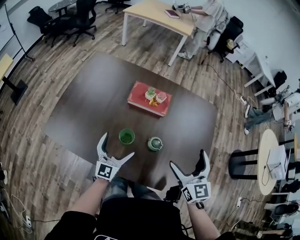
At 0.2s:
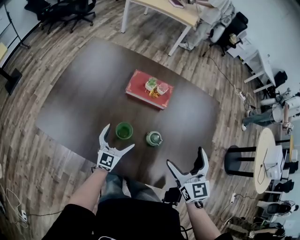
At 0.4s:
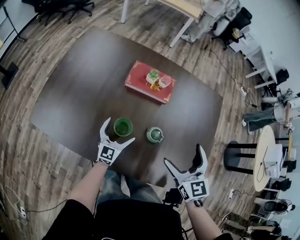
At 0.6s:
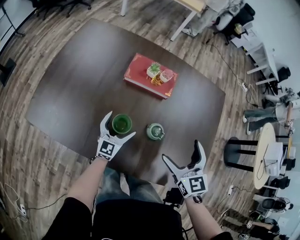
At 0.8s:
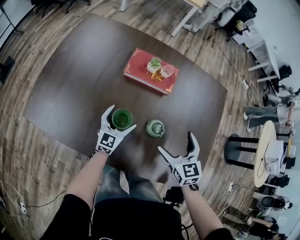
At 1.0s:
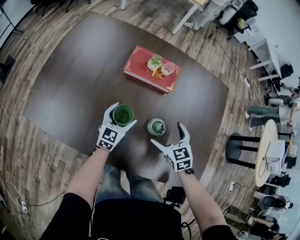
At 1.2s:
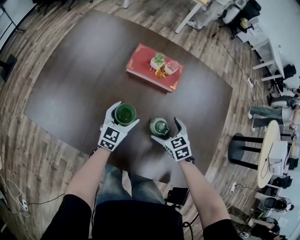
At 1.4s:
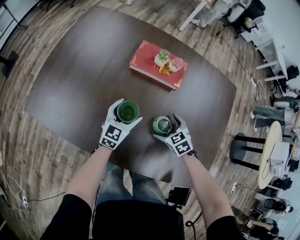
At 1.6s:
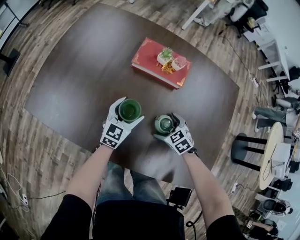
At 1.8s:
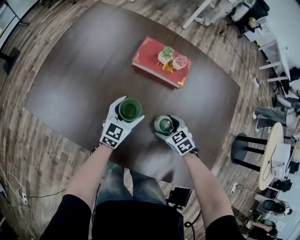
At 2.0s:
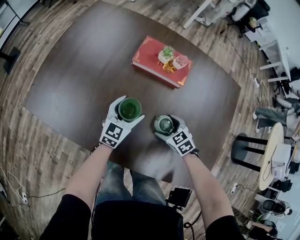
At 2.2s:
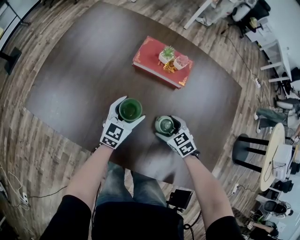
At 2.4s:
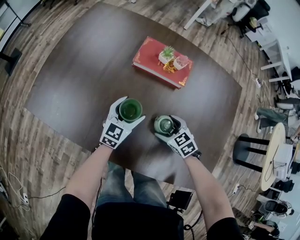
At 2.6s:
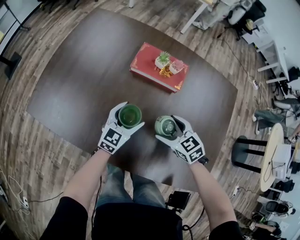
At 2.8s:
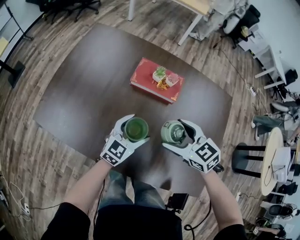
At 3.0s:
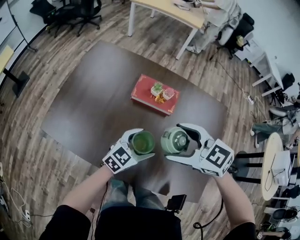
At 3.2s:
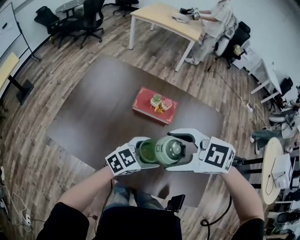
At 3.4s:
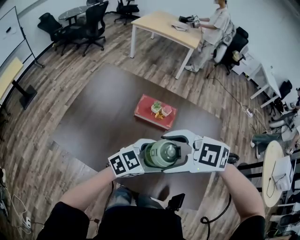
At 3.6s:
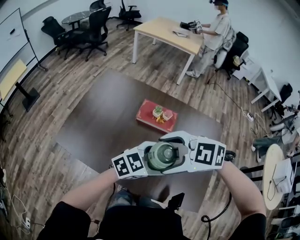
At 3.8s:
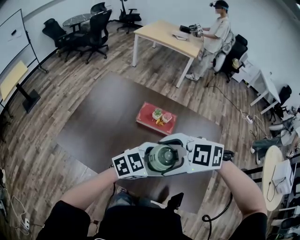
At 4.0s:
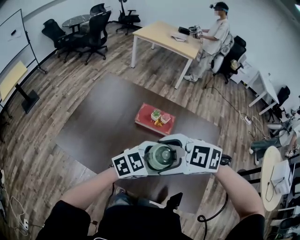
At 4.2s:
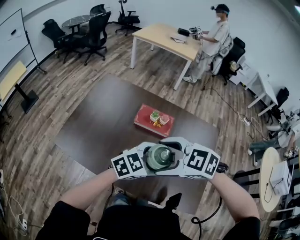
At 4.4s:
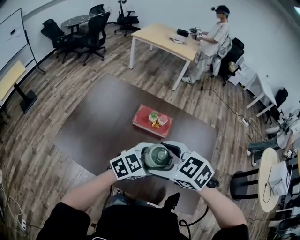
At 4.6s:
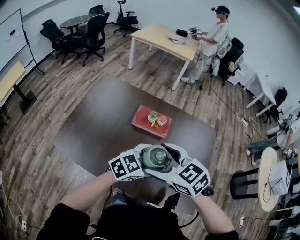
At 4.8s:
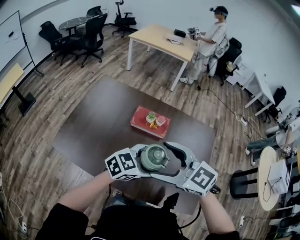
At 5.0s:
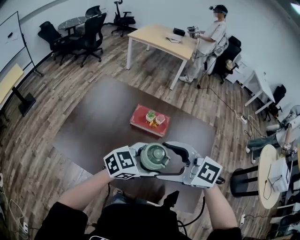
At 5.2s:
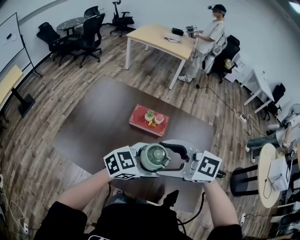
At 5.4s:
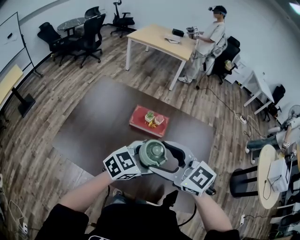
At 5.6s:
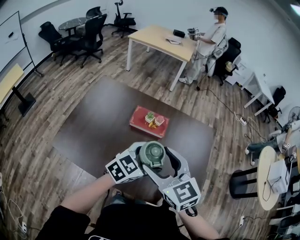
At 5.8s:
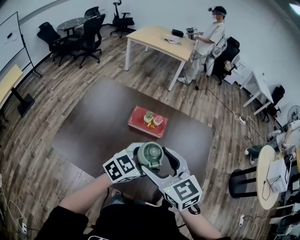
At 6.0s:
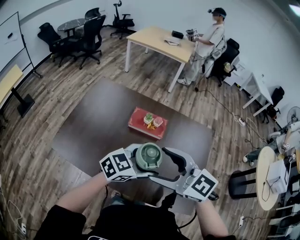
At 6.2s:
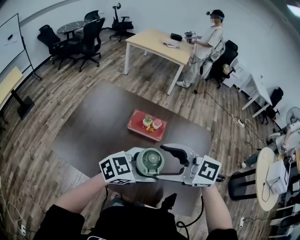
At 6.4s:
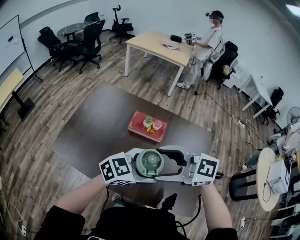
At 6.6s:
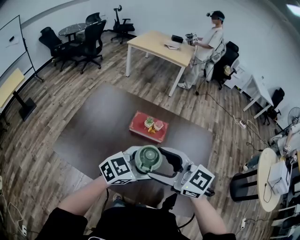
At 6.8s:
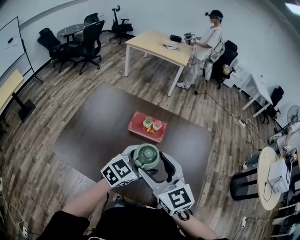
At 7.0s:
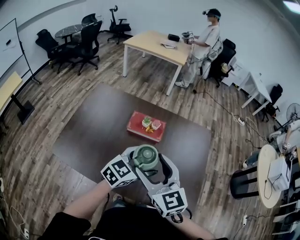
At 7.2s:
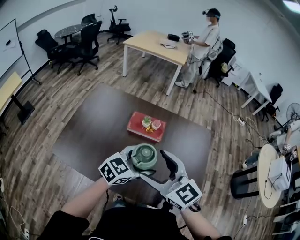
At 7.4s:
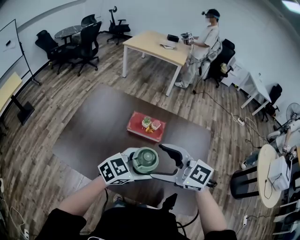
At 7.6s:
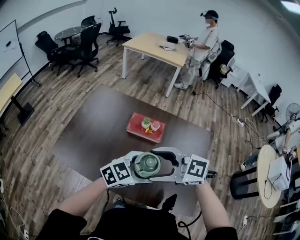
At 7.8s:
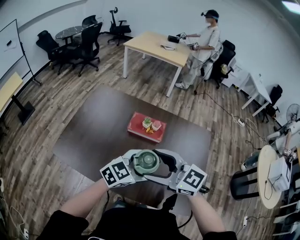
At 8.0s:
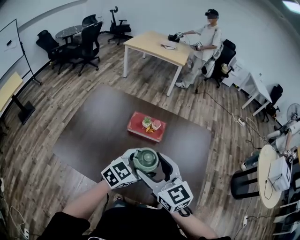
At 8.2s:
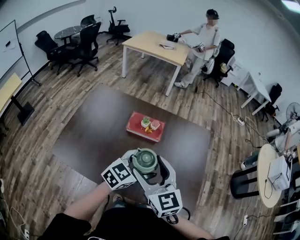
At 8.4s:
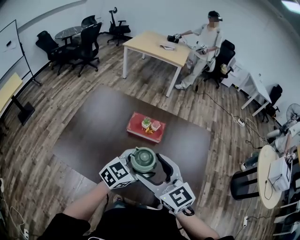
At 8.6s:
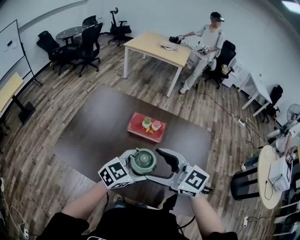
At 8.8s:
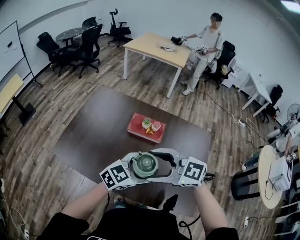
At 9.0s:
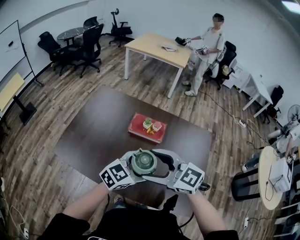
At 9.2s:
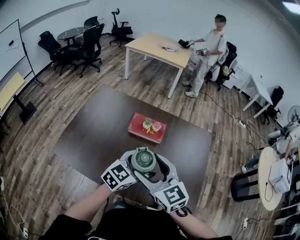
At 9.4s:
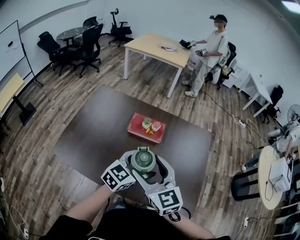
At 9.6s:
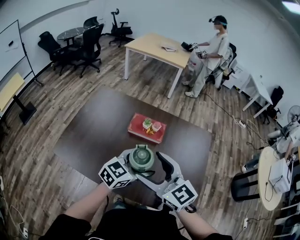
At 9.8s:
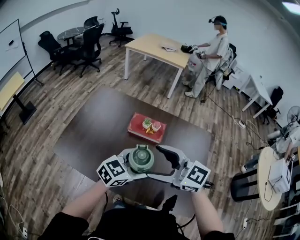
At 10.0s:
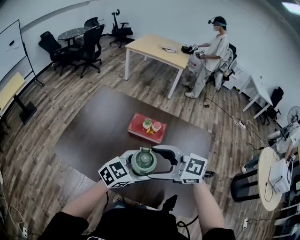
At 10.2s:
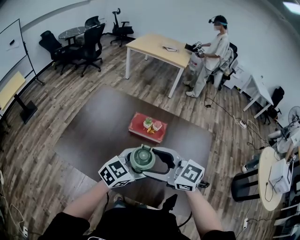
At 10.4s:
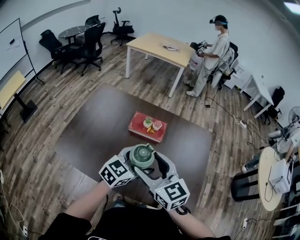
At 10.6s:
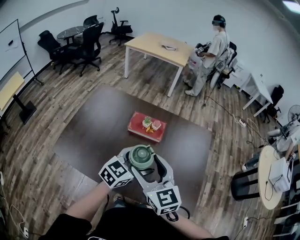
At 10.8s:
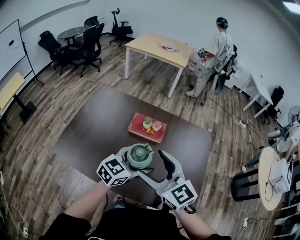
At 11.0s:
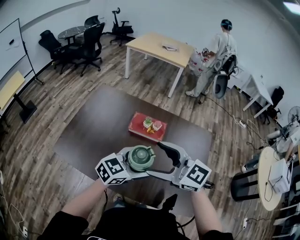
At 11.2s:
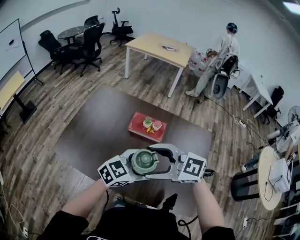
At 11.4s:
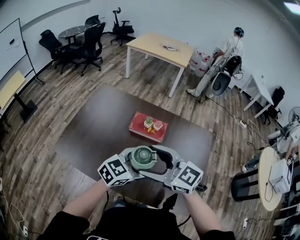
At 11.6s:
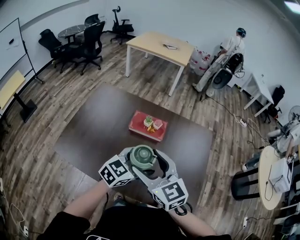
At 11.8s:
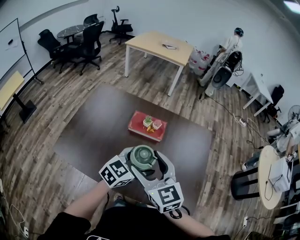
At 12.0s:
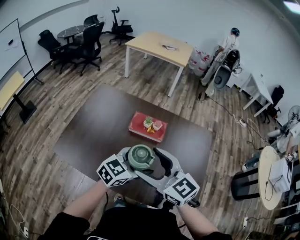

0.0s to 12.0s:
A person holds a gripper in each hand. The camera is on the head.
0.0s to 1.6s: The right gripper goes roughly 35 cm downward, and tips its fingers downward by roughly 50 degrees. The left gripper moves downward and forward, some 20 cm.
1.6s to 3.0s: The left gripper is displaced upward and backward by roughly 15 cm, and changes its angle by about 20 degrees; the right gripper heads upward, covering about 35 cm, and swivels roughly 30 degrees.
3.0s to 4.4s: The right gripper goes about 10 cm upward; the left gripper shifts about 15 cm upward.
4.4s to 6.0s: The right gripper moves upward, some 5 cm, and changes its angle by roughly 30 degrees.
6.0s to 7.6s: The right gripper turns by roughly 20 degrees.
9.0s to 10.4s: The right gripper rotates some 30 degrees.

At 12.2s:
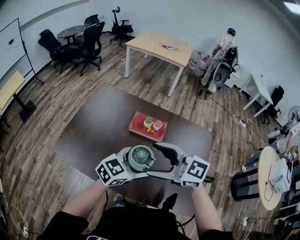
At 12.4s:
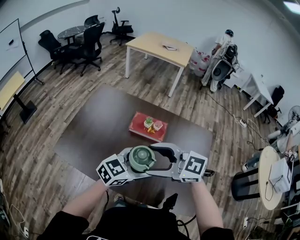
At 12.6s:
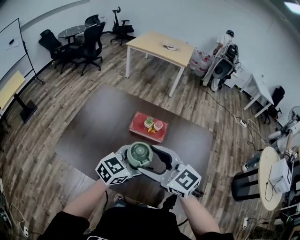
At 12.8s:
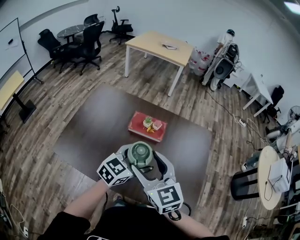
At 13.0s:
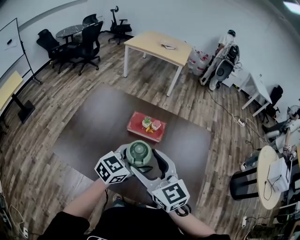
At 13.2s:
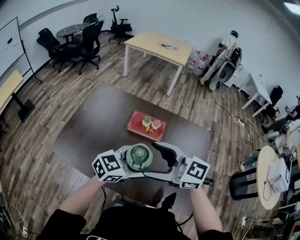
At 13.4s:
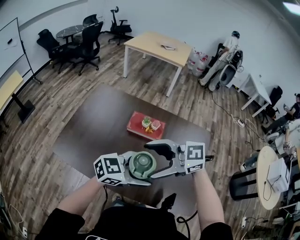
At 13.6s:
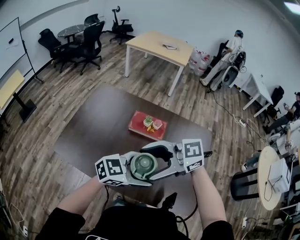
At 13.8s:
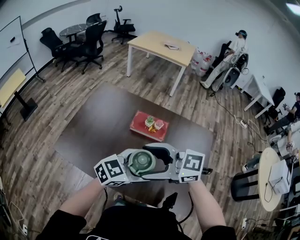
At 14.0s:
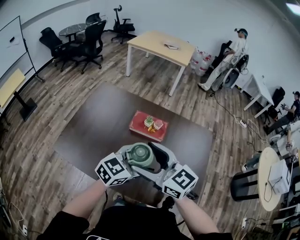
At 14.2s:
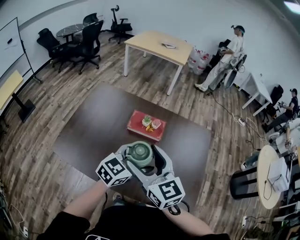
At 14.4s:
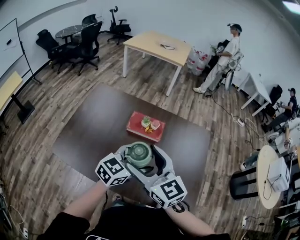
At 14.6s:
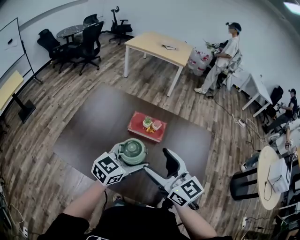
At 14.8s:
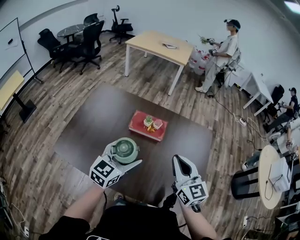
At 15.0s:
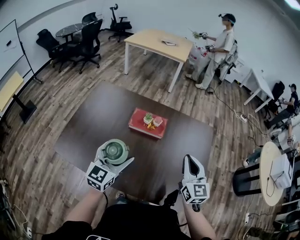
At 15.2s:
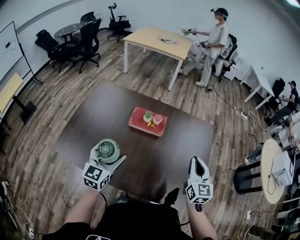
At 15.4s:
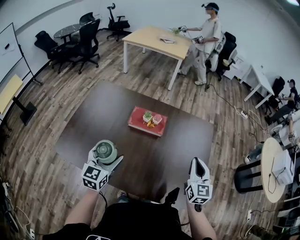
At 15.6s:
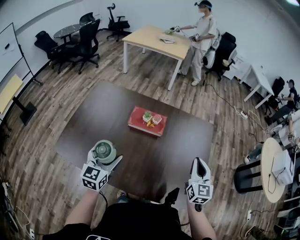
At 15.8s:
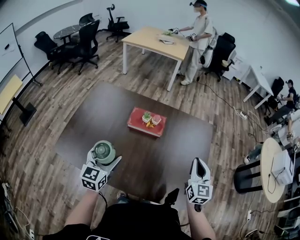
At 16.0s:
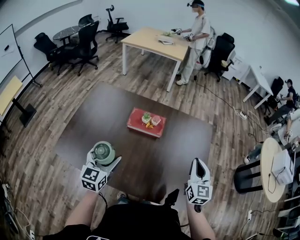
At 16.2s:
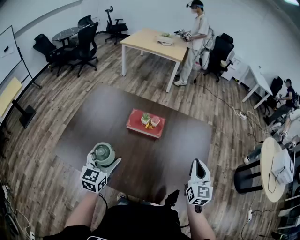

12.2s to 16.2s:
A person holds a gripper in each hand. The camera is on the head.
12.2s to 13.6s: The right gripper turns by some 30 degrees.
13.6s to 14.8s: The right gripper moves roughly 15 cm, rotates about 80 degrees, and closes its fingers. The left gripper changes place by approximately 10 cm, and rotates some 40 degrees.
14.8s to 16.2s: The left gripper heads to the left, covering about 10 cm. The right gripper heads to the right and downward, covering some 15 cm, and changes its angle by roughly 30 degrees.

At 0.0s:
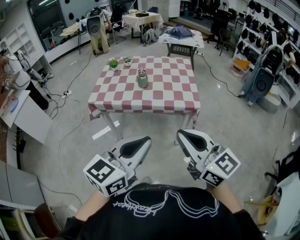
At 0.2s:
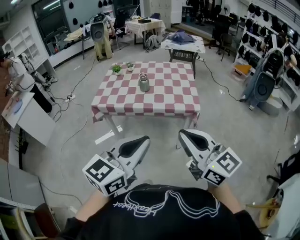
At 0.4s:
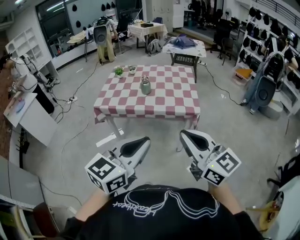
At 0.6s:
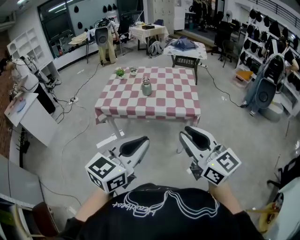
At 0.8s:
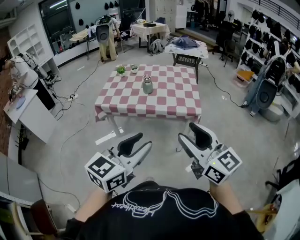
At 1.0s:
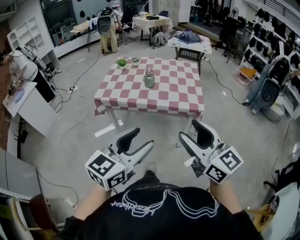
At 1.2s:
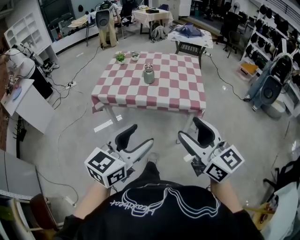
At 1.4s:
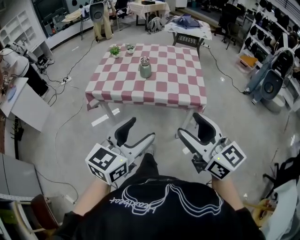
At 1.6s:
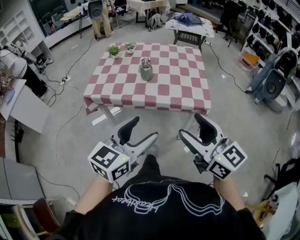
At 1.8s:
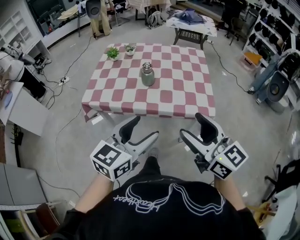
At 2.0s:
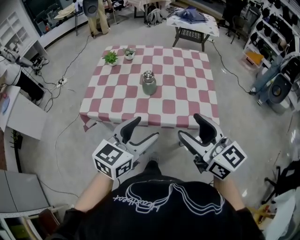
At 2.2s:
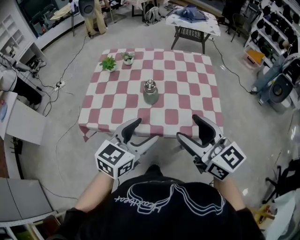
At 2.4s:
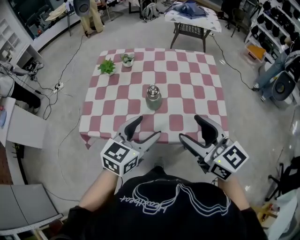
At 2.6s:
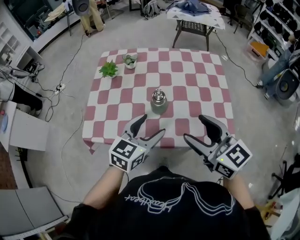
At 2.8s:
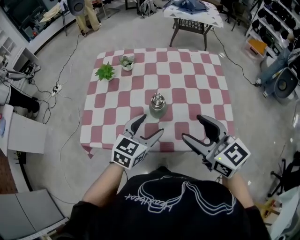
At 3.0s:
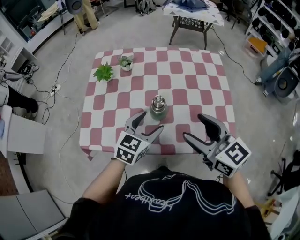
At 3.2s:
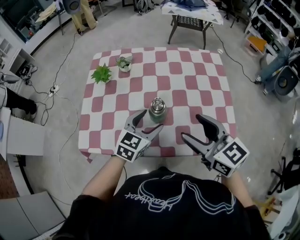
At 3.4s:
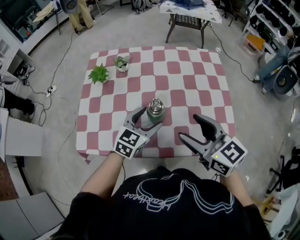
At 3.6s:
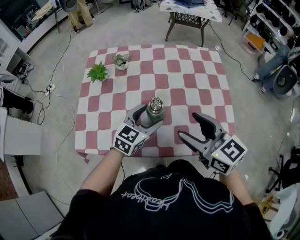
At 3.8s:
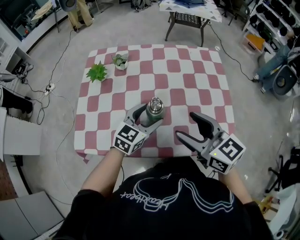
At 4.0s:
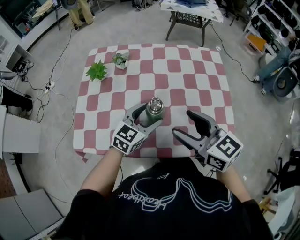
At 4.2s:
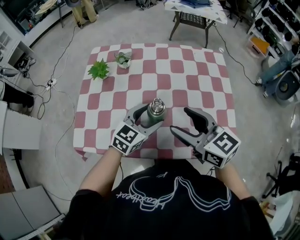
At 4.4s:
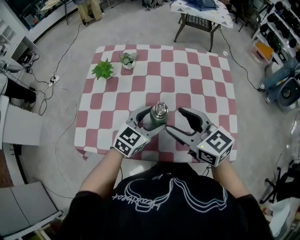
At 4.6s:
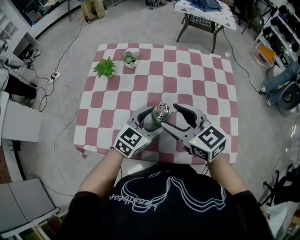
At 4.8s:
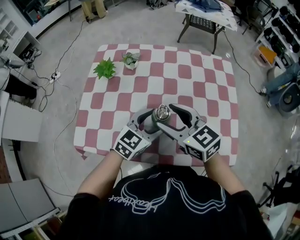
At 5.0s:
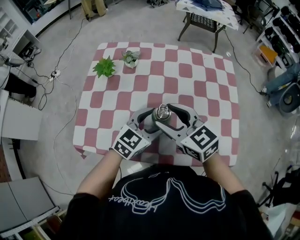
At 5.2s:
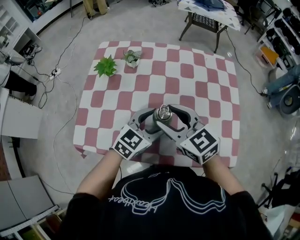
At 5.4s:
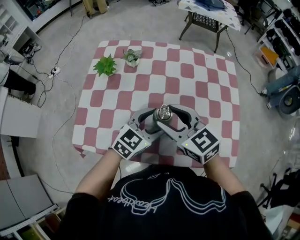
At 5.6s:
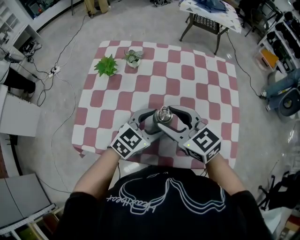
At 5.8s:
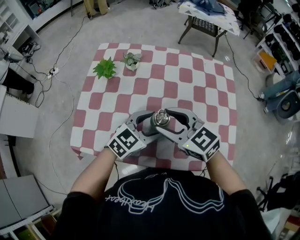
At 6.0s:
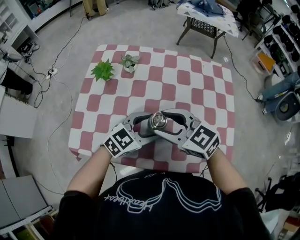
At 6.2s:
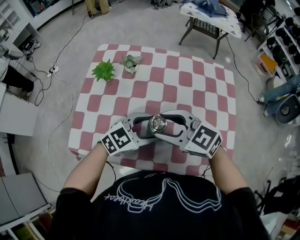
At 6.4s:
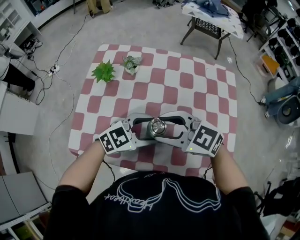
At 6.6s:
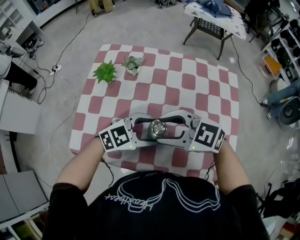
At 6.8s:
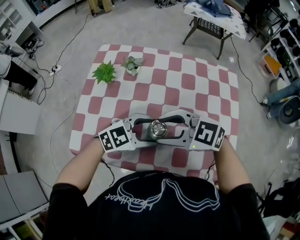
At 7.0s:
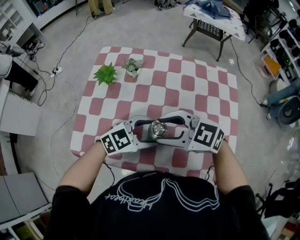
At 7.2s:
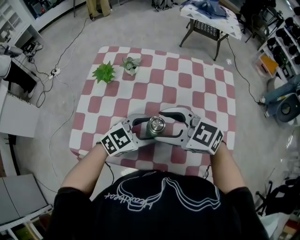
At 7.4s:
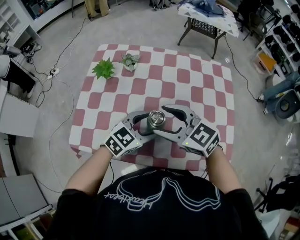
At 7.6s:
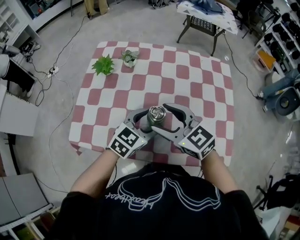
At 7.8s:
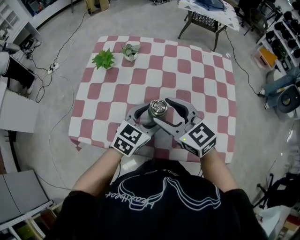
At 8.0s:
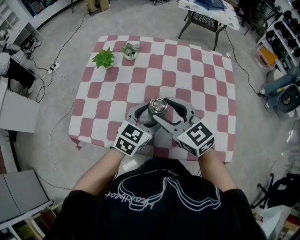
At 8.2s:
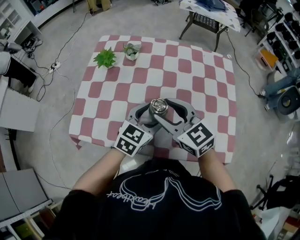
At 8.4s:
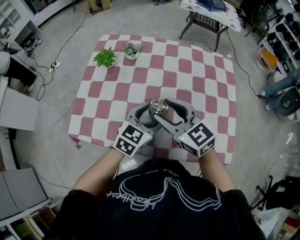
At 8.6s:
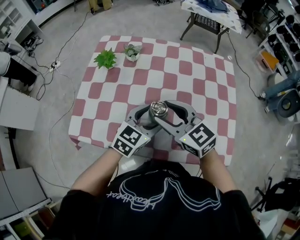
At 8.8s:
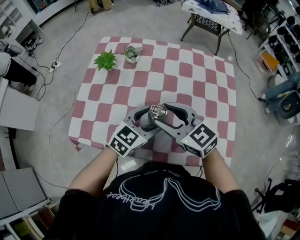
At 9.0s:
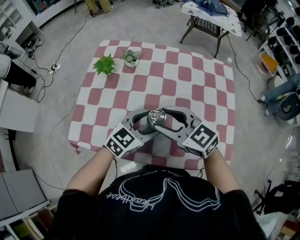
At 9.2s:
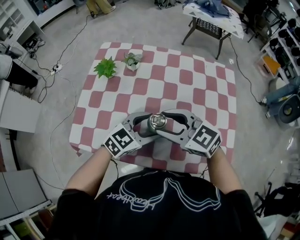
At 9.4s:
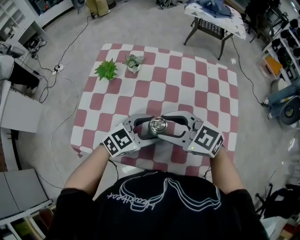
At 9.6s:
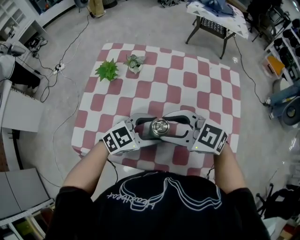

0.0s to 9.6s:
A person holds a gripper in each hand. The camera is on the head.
0.0s to 1.6s: Both grippers travel together forward and downward, about 10 cm. The right gripper opens, while the left gripper opens up.
1.6s to 3.2s: The left gripper travels forward and downward by approximately 40 cm; the right gripper shifts roughly 35 cm forward.
3.2s to 4.8s: The right gripper is displaced to the left, forward and downward by approximately 15 cm.
4.8s to 6.4s: The left gripper swivels about 20 degrees. Meanwhile the right gripper swivels about 30 degrees.
6.4s to 8.0s: The right gripper changes its angle by some 30 degrees. Meanwhile the left gripper swivels some 30 degrees.
8.0s to 9.6s: The right gripper rotates some 30 degrees, while the left gripper changes its angle by about 30 degrees.
